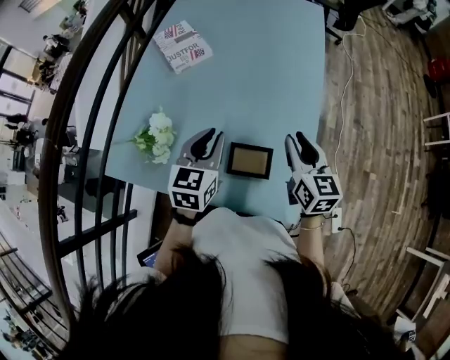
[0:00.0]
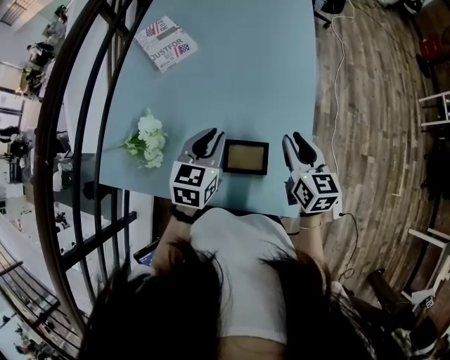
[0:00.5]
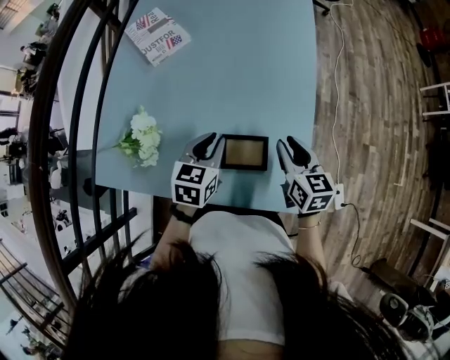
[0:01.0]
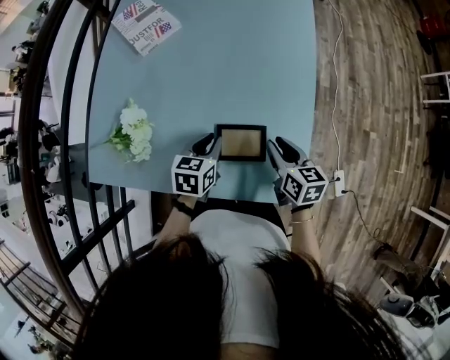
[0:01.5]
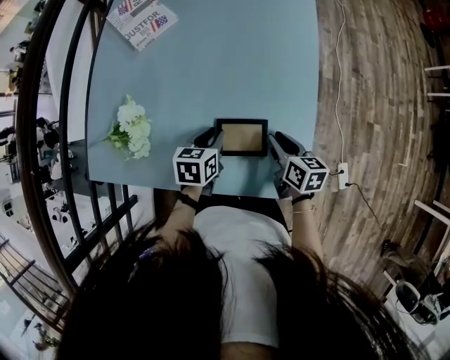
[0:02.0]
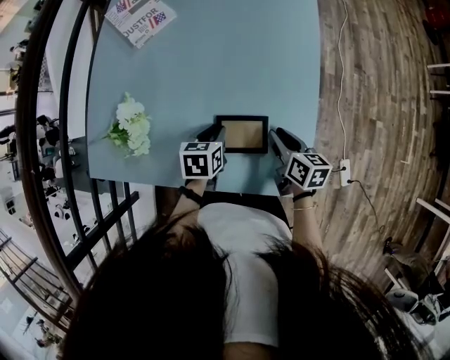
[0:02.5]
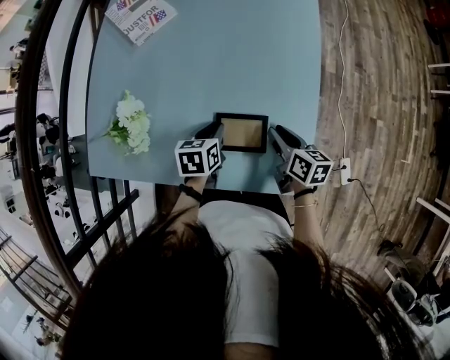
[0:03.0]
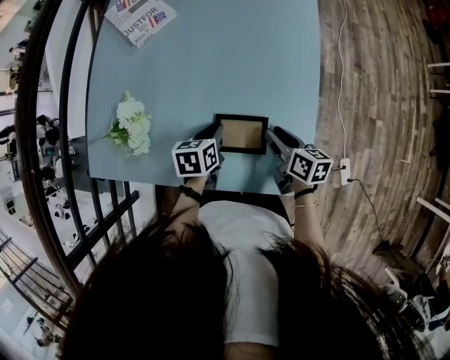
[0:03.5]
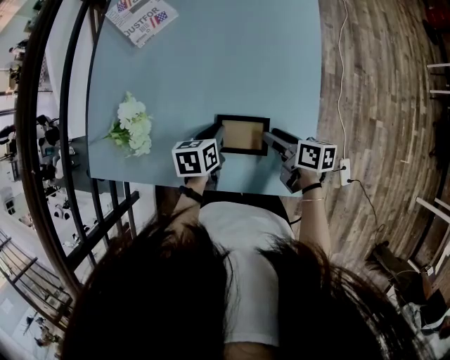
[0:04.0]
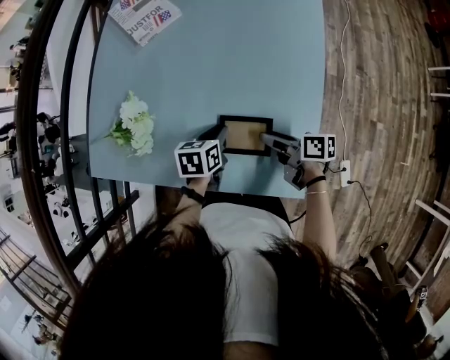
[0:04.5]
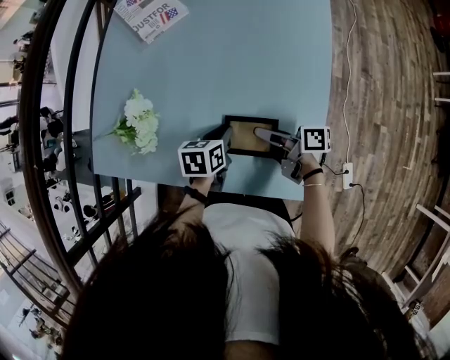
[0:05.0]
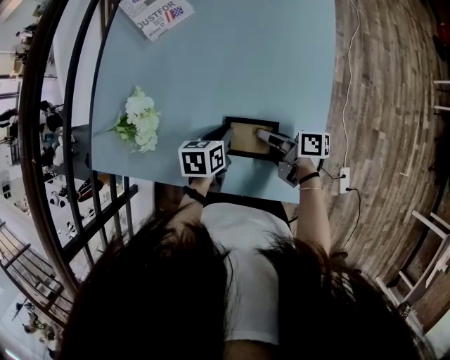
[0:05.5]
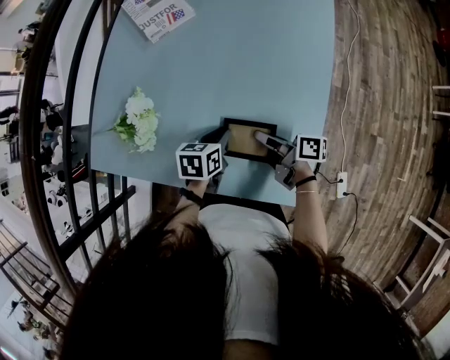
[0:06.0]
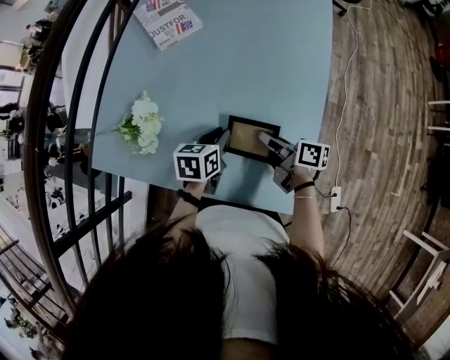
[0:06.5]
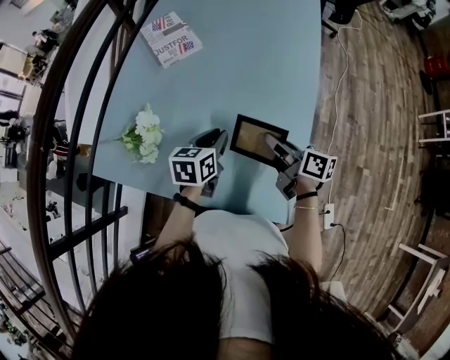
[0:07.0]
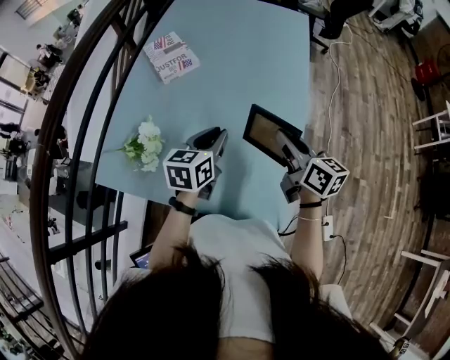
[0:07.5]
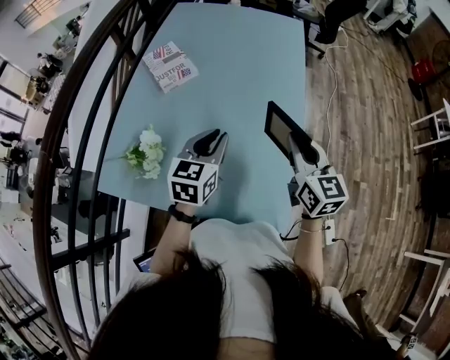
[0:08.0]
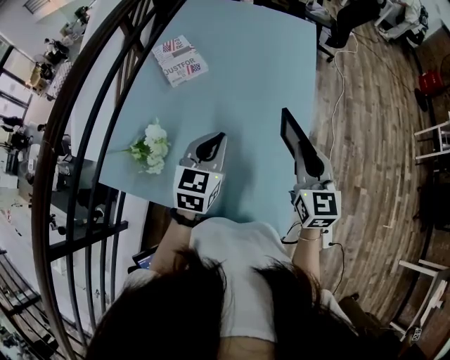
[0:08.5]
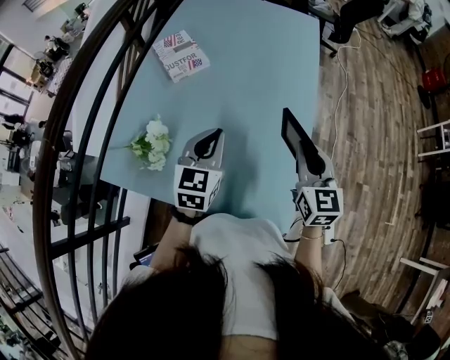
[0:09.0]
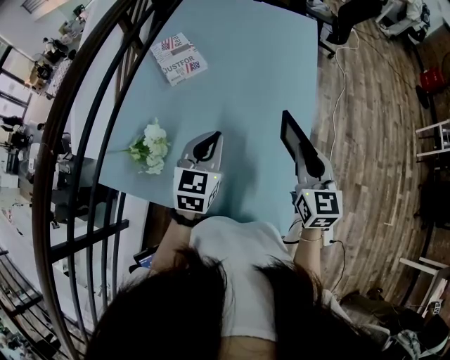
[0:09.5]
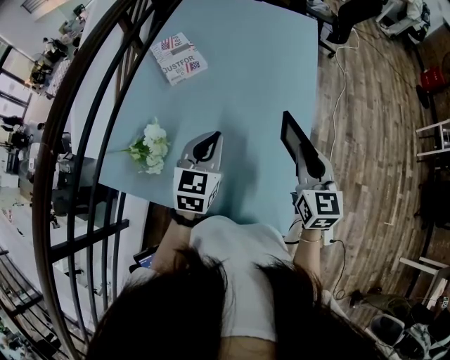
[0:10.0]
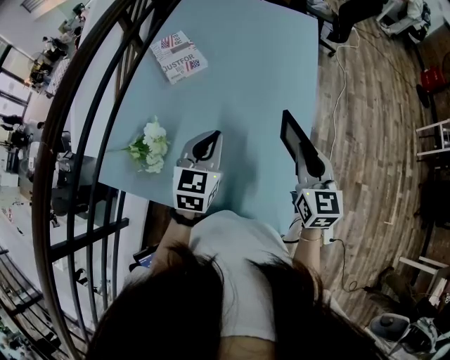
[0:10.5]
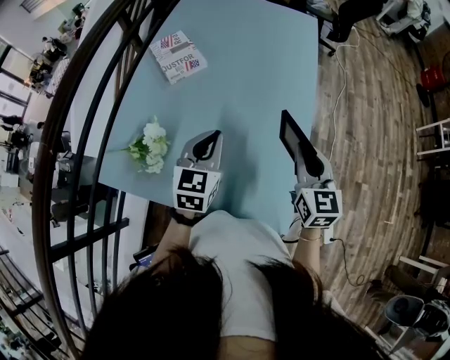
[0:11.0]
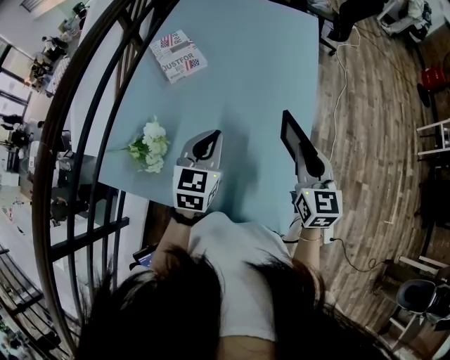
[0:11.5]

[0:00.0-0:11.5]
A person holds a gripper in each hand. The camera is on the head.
0.0 to 2.0 s: Both grippers move downward, about 20 cm. The left gripper turns by some 30 degrees. Meanwhile the right gripper changes its angle by approximately 30 degrees.
2.0 to 4.0 s: The right gripper turns by approximately 20 degrees, and opens.
4.0 to 6.0 s: The right gripper moves to the left, about 5 cm, changes its angle by roughly 20 degrees, and closes up.
6.0 to 7.5 s: The two grippers go some 20 cm upward. The right gripper changes its angle by approximately 50 degrees. Meanwhile the left gripper changes its angle by about 30 degrees.
7.5 to 9.5 s: The right gripper rotates about 40 degrees. The left gripper rotates some 20 degrees.
9.5 to 11.5 s: Neither gripper changes place.

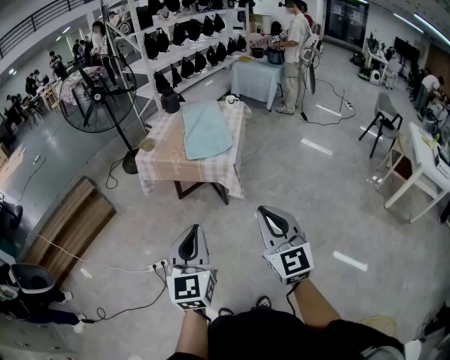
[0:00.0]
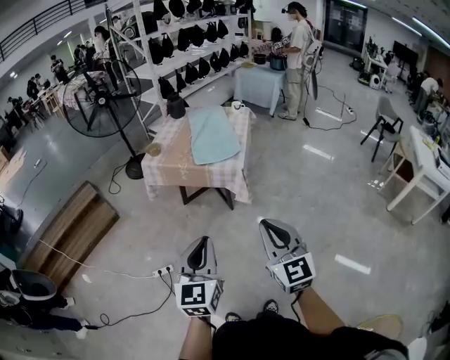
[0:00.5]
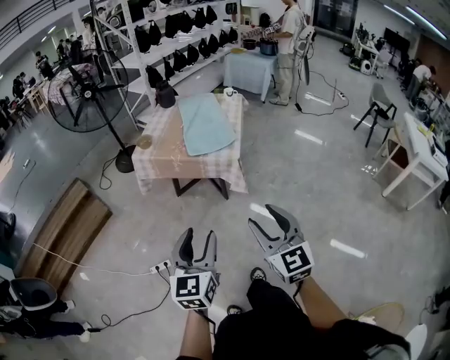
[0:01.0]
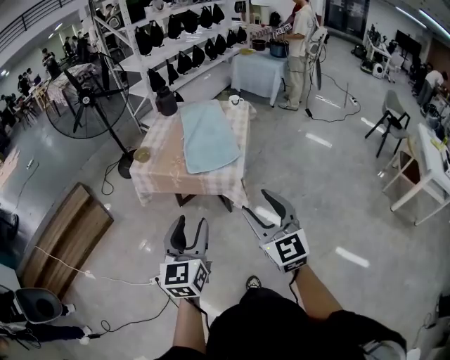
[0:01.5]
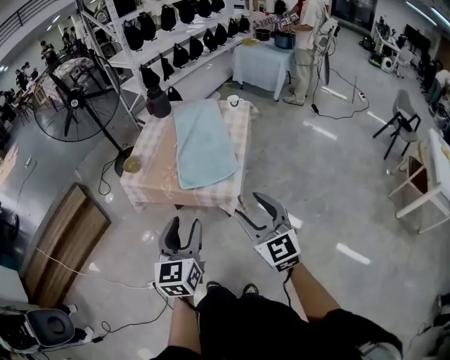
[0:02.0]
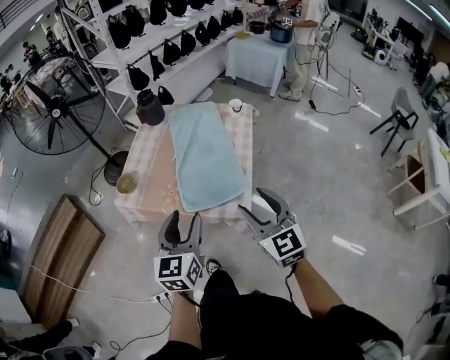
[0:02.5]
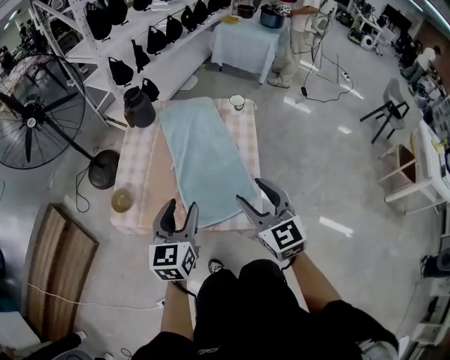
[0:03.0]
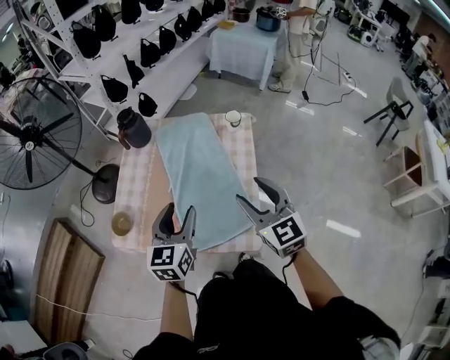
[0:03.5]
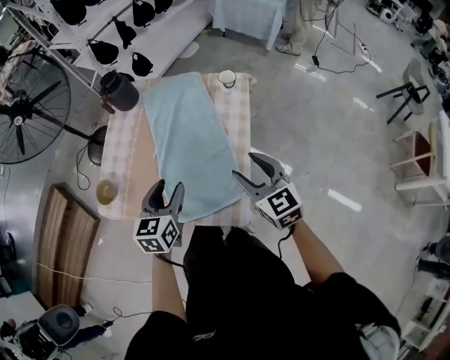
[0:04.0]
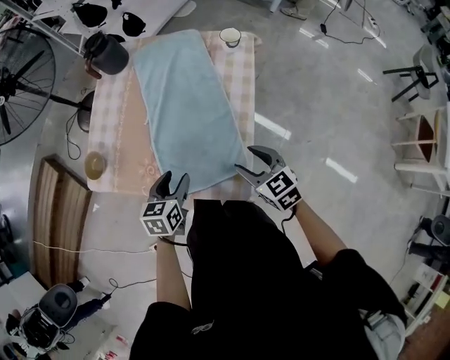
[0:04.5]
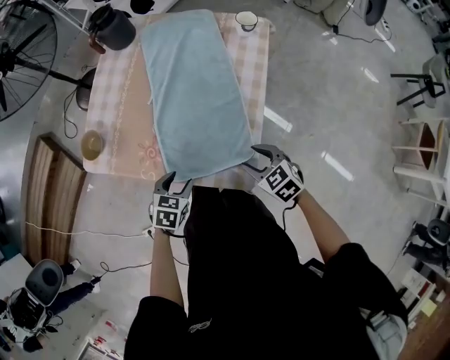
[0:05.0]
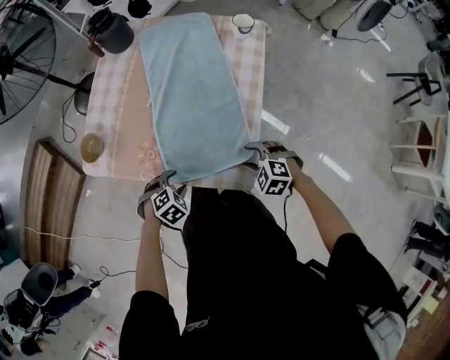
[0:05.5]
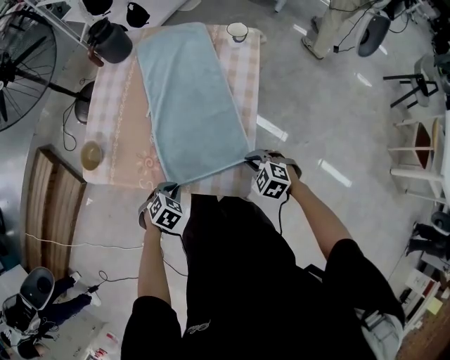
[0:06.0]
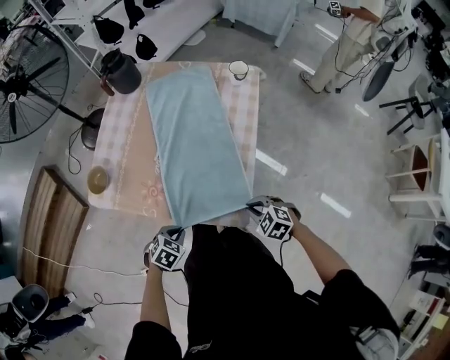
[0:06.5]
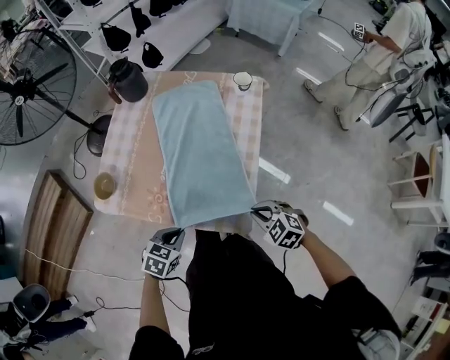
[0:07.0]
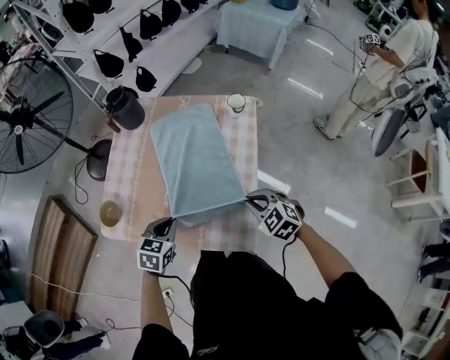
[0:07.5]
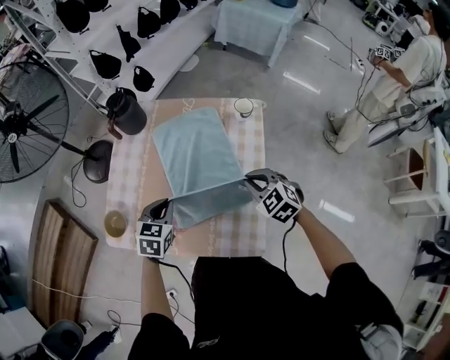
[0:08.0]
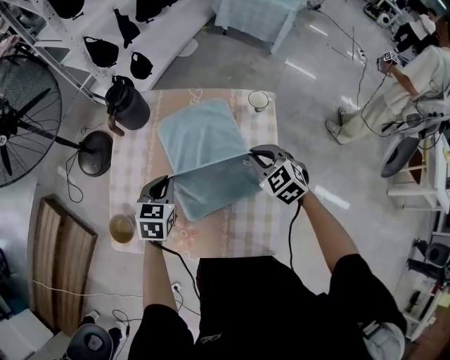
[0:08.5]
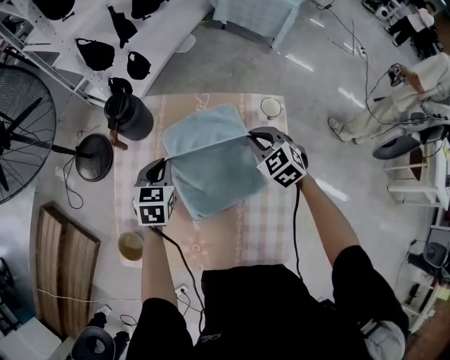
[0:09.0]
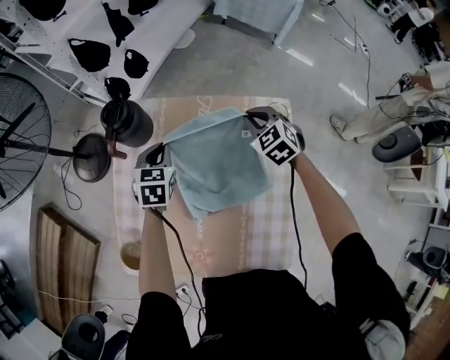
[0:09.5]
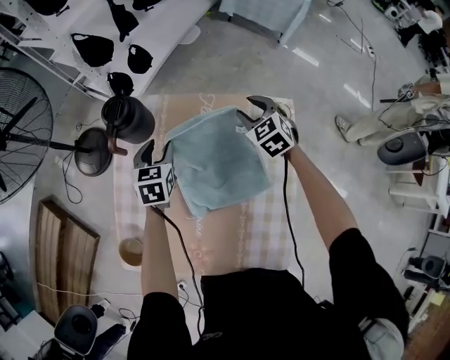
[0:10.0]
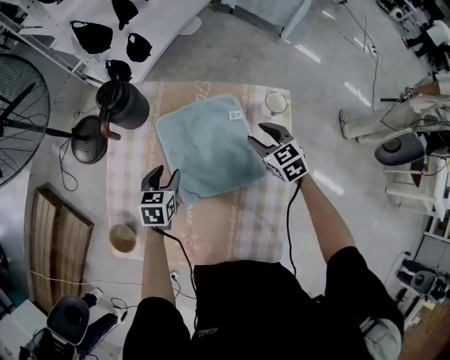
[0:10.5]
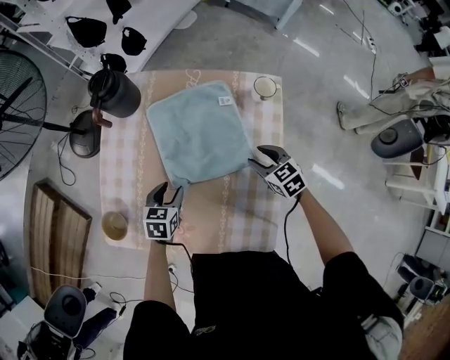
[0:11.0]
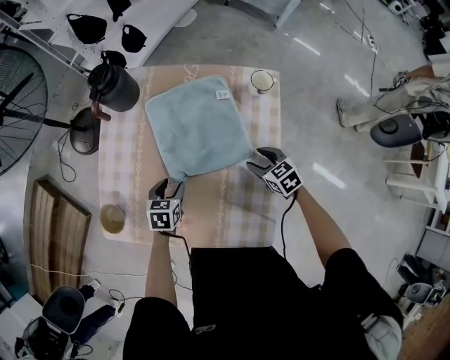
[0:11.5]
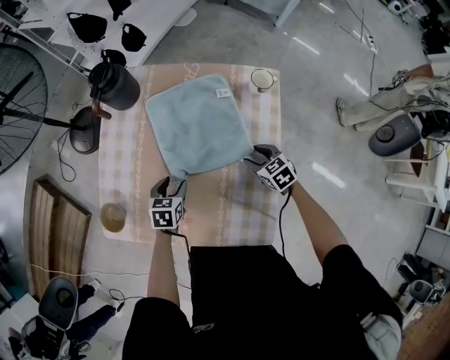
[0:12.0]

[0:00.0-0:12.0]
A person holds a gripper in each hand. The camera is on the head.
0.0 to 2.0 s: Both grippers move forward, about 35 cm. The right gripper opens its fingers, while the left gripper opens.
2.0 to 4.0 s: The pair of grippers is taken forward, some 40 cm.
4.0 to 6.0 s: The left gripper shifts roughly 25 cm downward and backward, tips its fingers downward by some 40 degrees, and closes up; the right gripper is displaced downward by some 25 cm, angles its fingers downward, by some 40 degrees, and closes its fingers.
6.0 to 8.0 s: The two grippers go approximately 25 cm forward and upward. The right gripper swivels about 20 degrees. Meanwhile the left gripper turns by approximately 30 degrees.
8.0 to 10.0 s: The two grippers go about 35 cm forward. The right gripper opens, while the left gripper opens its fingers.
10.0 to 12.0 s: The left gripper heads backward, covering roughly 25 cm. Meanwhile the right gripper goes about 30 cm backward and downward, and turns by about 30 degrees.

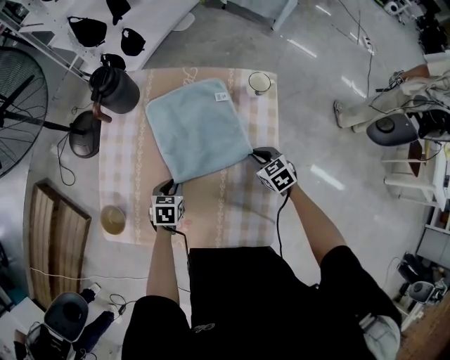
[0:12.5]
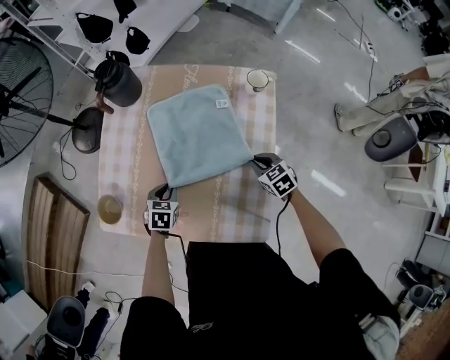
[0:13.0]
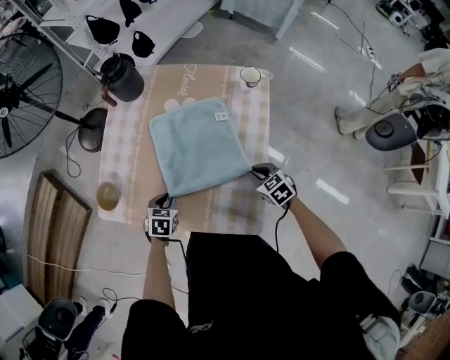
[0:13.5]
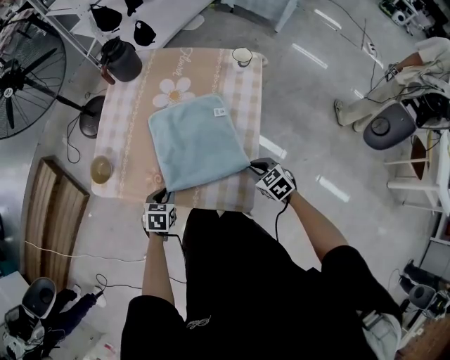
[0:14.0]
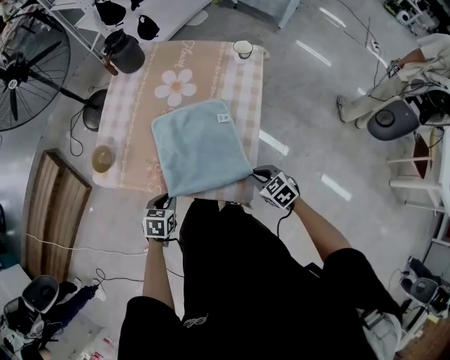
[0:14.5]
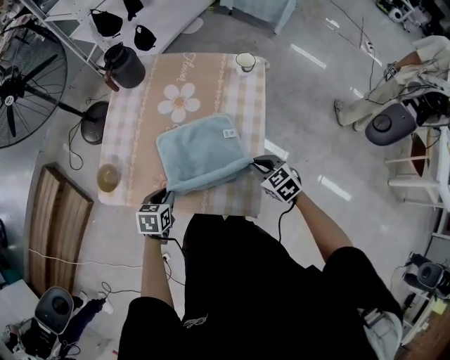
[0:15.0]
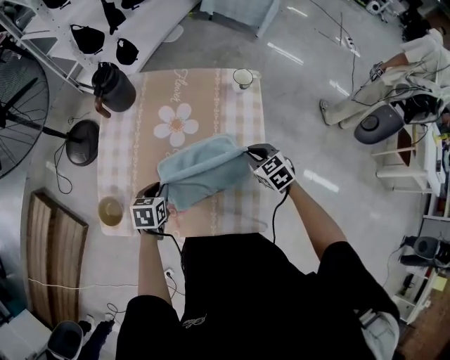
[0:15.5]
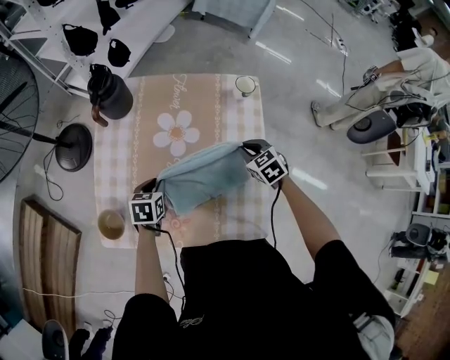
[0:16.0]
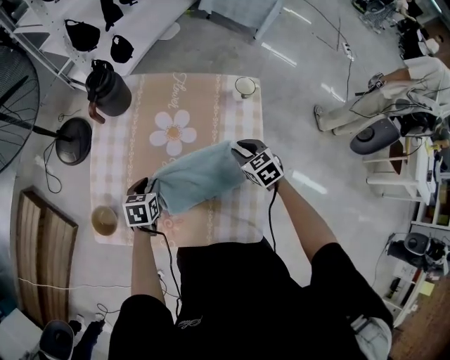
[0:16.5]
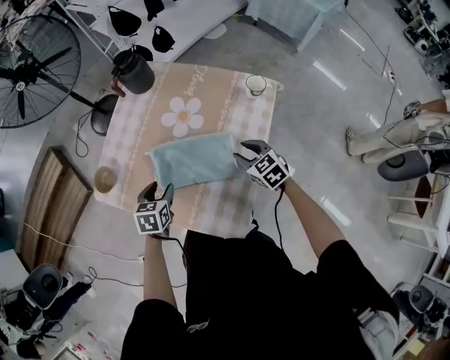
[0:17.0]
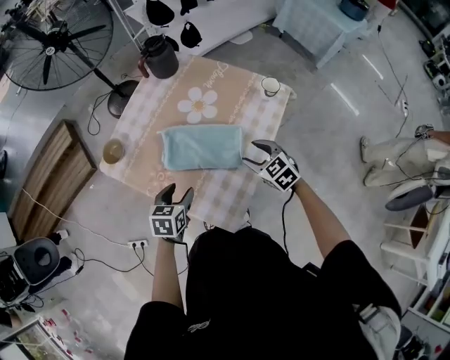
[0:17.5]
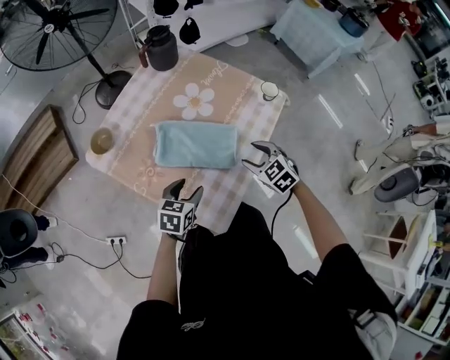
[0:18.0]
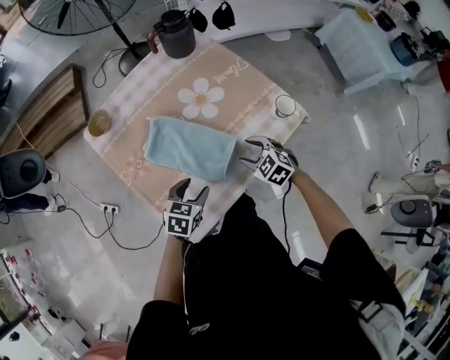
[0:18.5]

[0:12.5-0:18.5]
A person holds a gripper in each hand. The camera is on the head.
12.5 to 14.5 s: Both grippers travel together backward, some 30 cm.
14.5 to 16.5 s: Both grippers travel together forward, approximately 30 cm.
16.5 to 18.5 s: The left gripper changes place by roughly 30 cm, changes its angle by roughly 20 degrees, and opens its fingers. Meanwhile the right gripper rotates around the line of its fingers by approximately 50 degrees, counterclockwise from behind, and opens.
